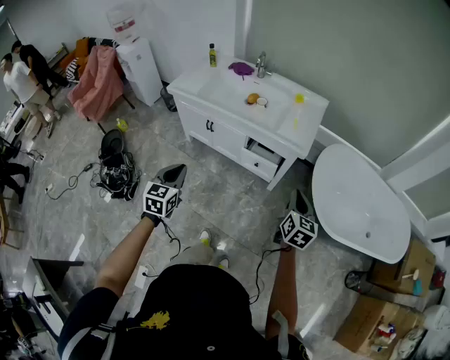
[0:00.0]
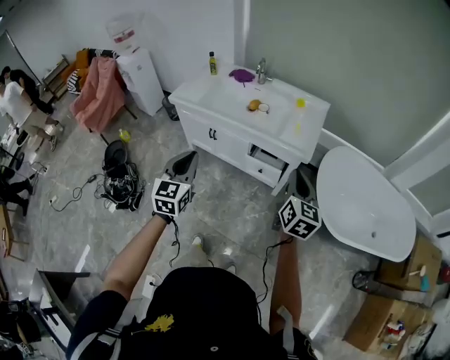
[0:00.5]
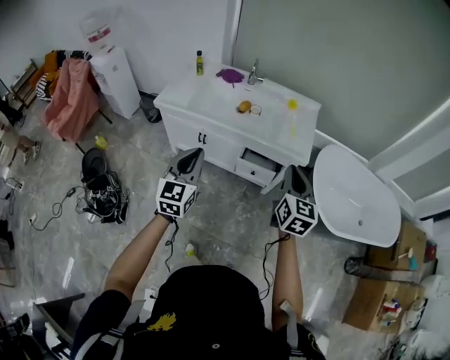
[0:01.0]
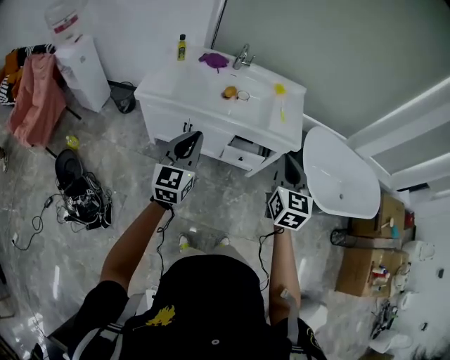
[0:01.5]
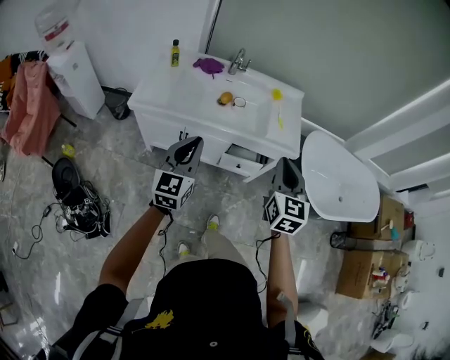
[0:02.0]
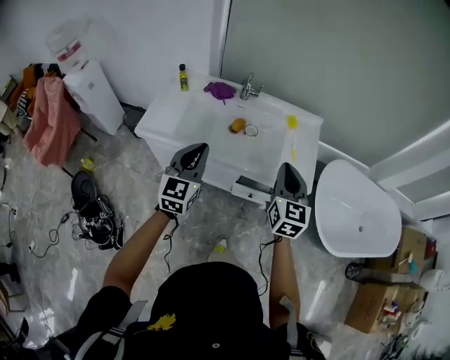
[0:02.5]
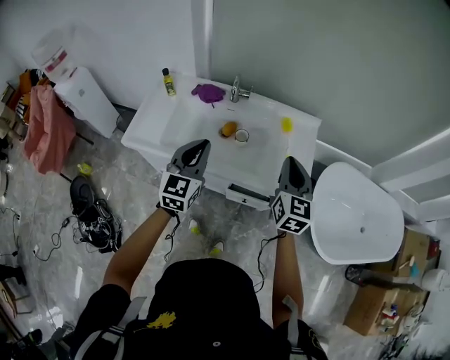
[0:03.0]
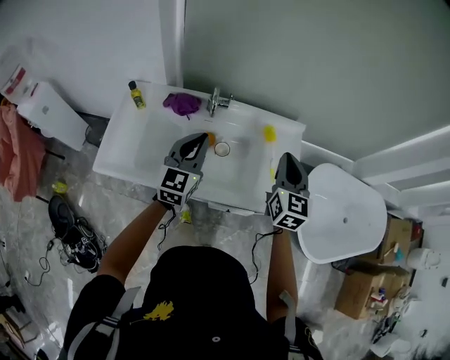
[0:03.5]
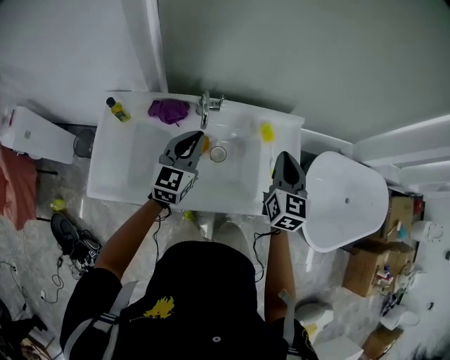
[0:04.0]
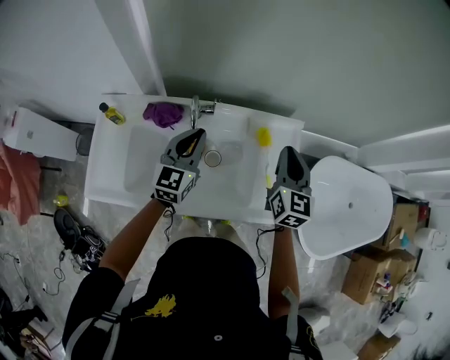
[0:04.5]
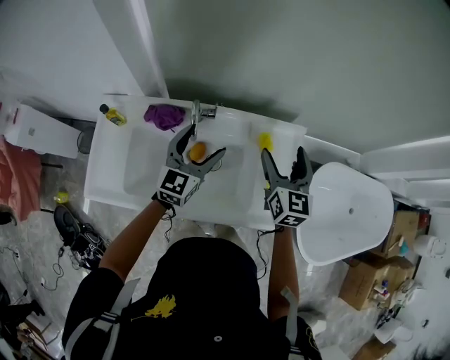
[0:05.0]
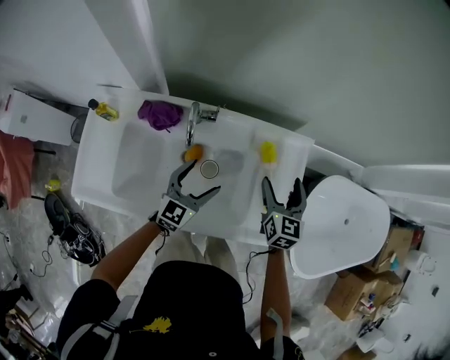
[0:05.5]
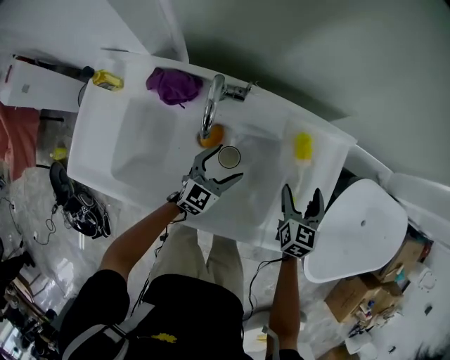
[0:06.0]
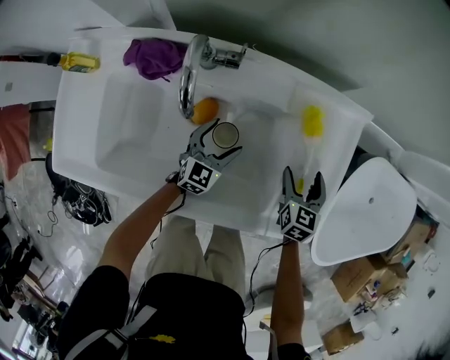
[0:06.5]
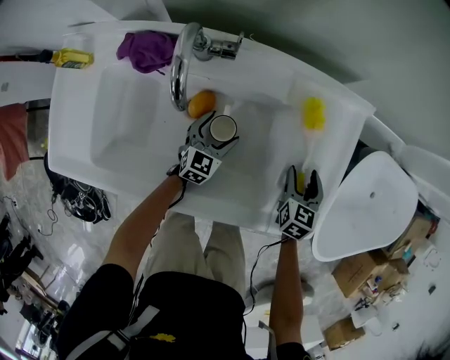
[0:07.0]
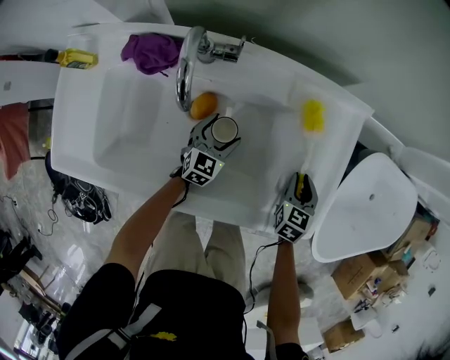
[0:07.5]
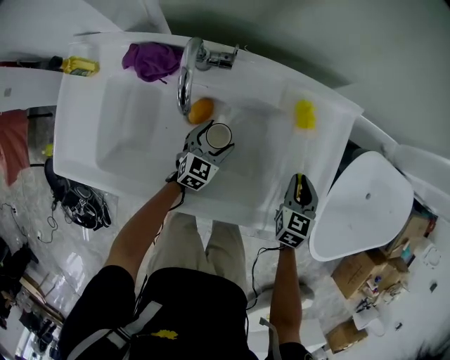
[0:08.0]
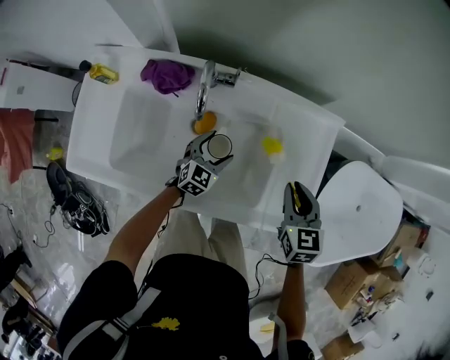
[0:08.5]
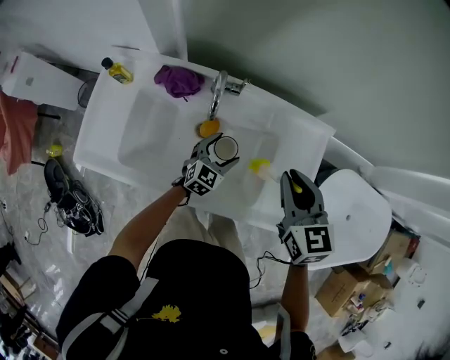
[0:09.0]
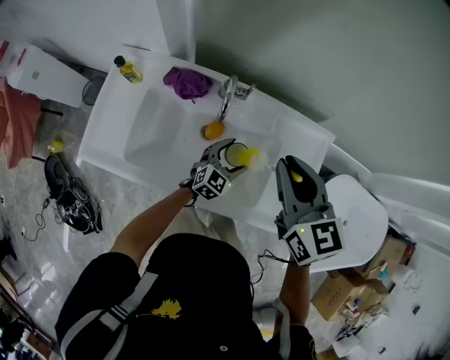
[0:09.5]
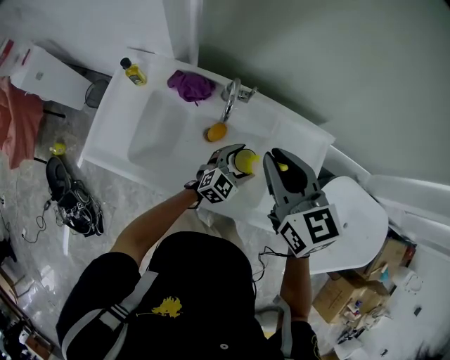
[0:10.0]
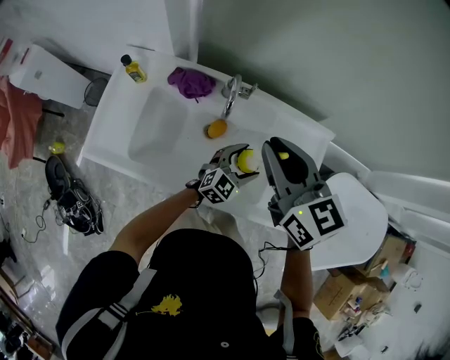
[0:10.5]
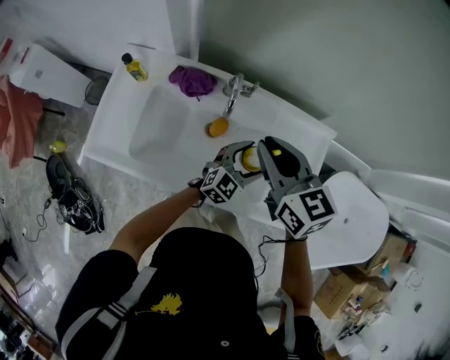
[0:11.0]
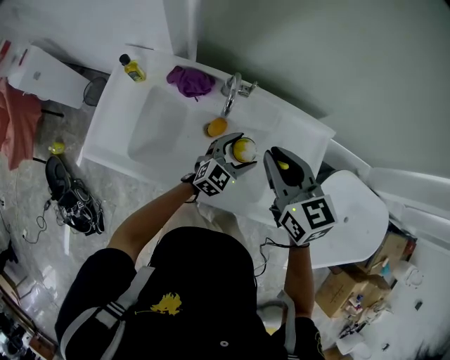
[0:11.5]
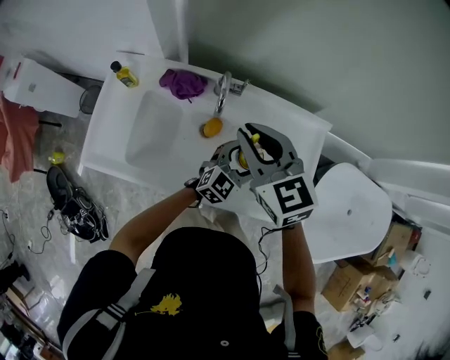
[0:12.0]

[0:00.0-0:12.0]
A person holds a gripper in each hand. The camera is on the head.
0:00.0 to 0:02.0: The right gripper goes roughly 30 cm to the left and forward, and turns by roughly 20 degrees. Meanwhile the left gripper moves forward and to the left, about 25 cm, and rotates about 30 degrees.
0:02.0 to 0:04.0: Both grippers are carried forward, approximately 50 cm.
0:04.0 to 0:06.0: The two grippers go some 30 cm downward. The right gripper opens up. Meanwhile the left gripper opens up.
0:06.0 to 0:08.0: The left gripper shifts approximately 10 cm downward. The right gripper moves downward, about 5 cm, and closes up.
0:08.0 to 0:10.0: The right gripper is displaced upward and to the left by roughly 40 cm, and rotates roughly 50 degrees, while the left gripper moves upward, roughly 20 cm.
0:10.0 to 0:12.0: The right gripper moves some 5 cm. The left gripper moves upward, some 5 cm.

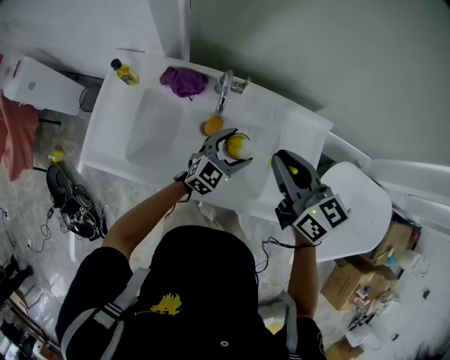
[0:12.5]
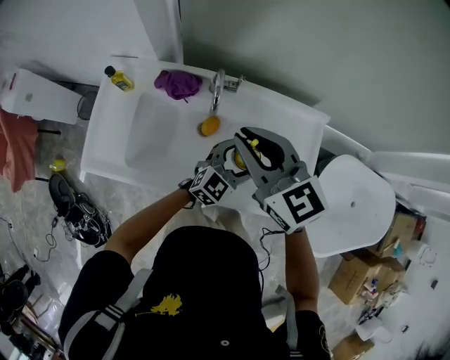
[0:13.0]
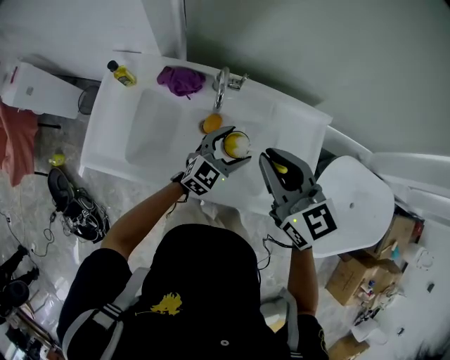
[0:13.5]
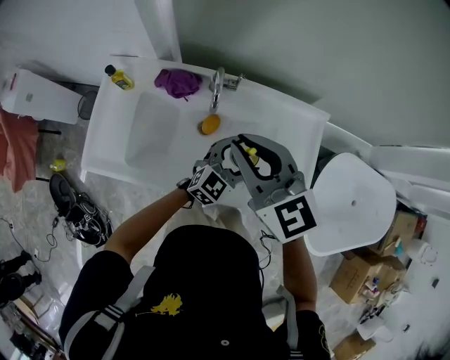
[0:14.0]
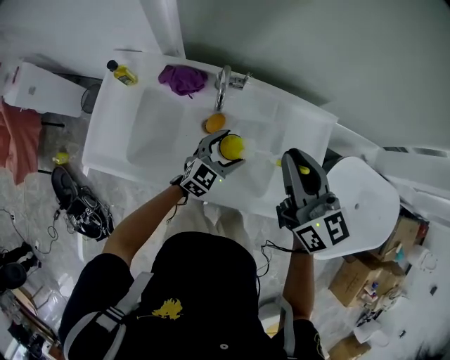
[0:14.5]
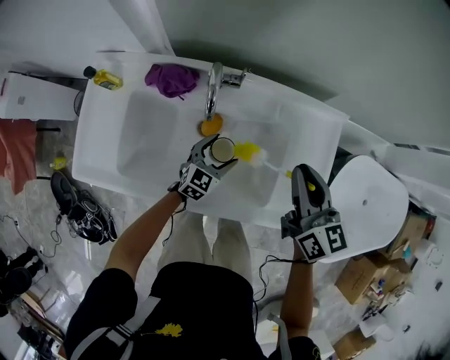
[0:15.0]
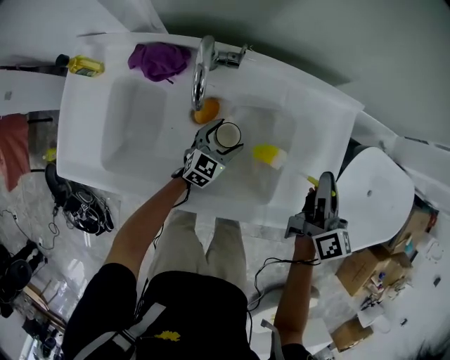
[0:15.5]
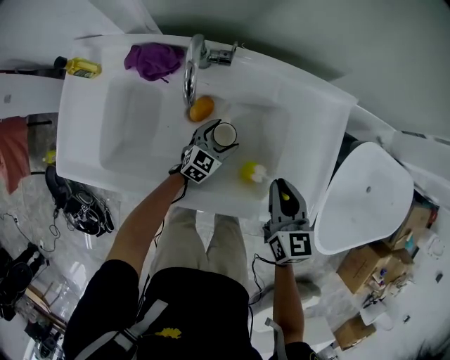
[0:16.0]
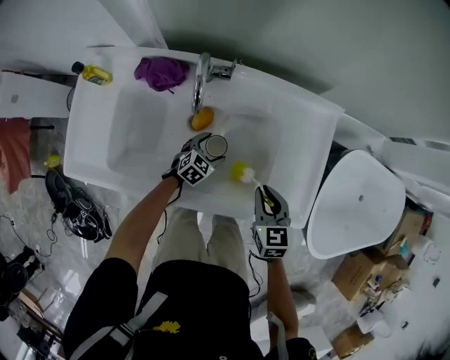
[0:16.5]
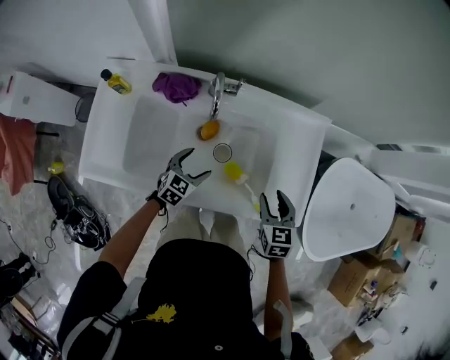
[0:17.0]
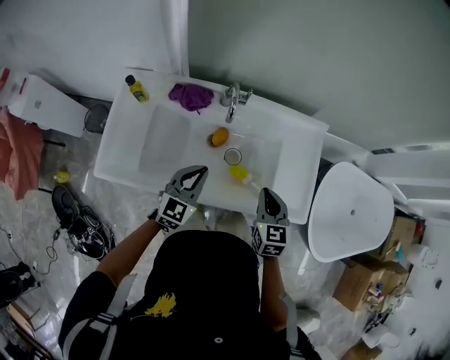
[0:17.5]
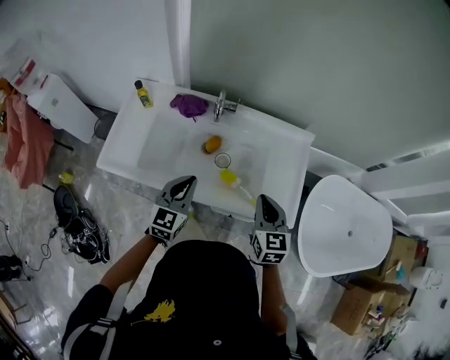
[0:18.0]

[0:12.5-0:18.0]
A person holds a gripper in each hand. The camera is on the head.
0:12.5 to 0:14.5: The right gripper goes left and right, roughly 10 cm each way, reversing 3 times.
0:14.5 to 0:16.0: The two grippers go some 25 cm downward. The right gripper swivels some 30 degrees.
0:16.0 to 0:18.0: The right gripper travels upward and backward by about 20 cm, and opens, then closes once more. The left gripper is displaced upward and backward by approximately 40 cm, turns by about 30 degrees, and closes its fingers.

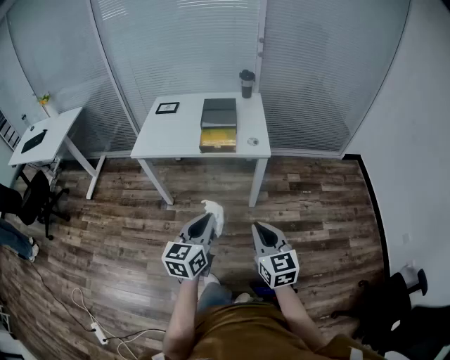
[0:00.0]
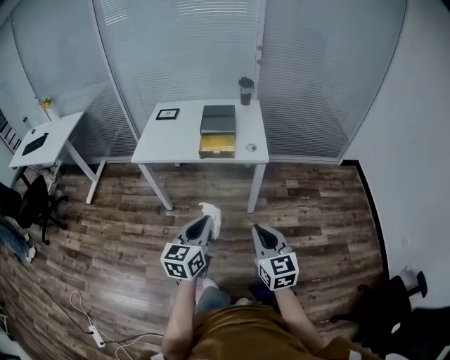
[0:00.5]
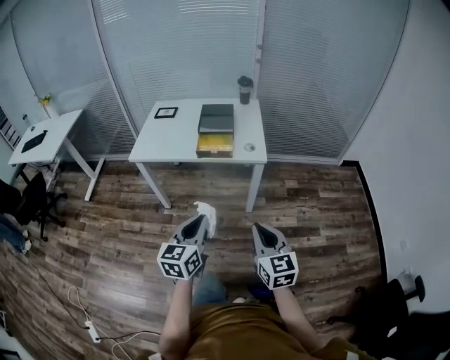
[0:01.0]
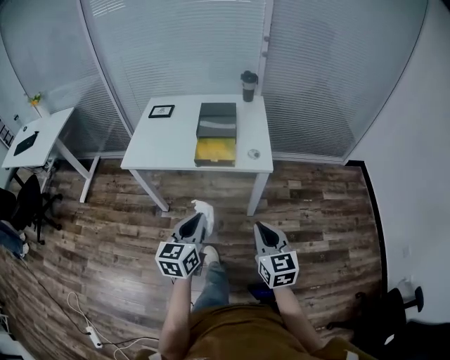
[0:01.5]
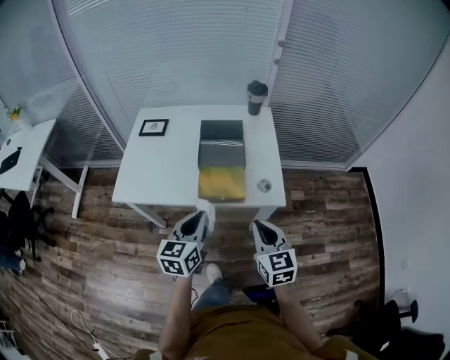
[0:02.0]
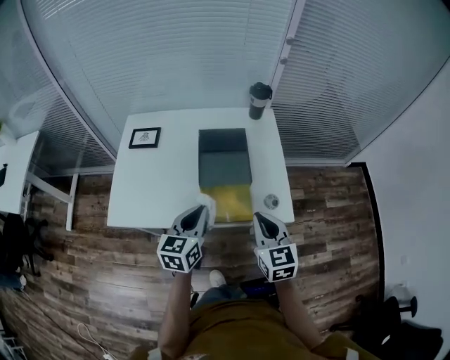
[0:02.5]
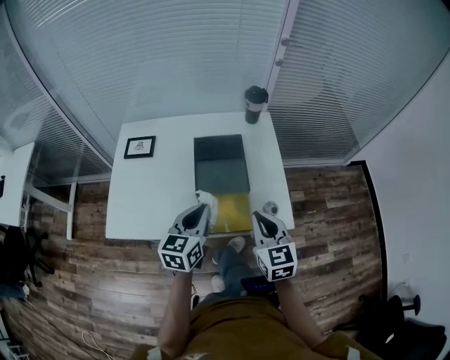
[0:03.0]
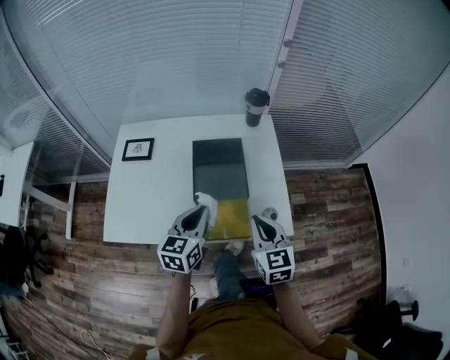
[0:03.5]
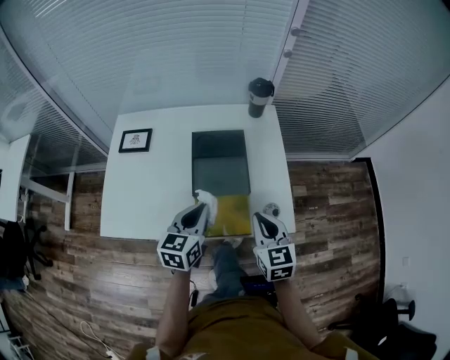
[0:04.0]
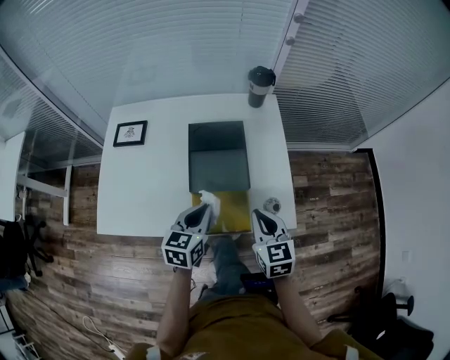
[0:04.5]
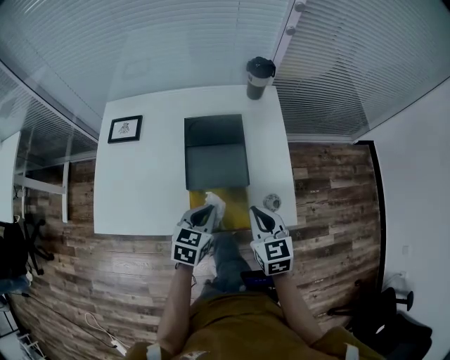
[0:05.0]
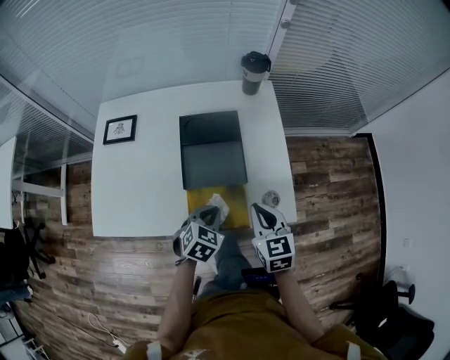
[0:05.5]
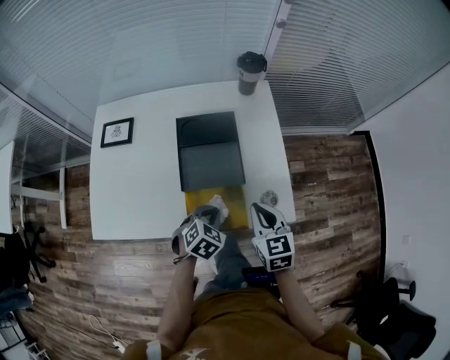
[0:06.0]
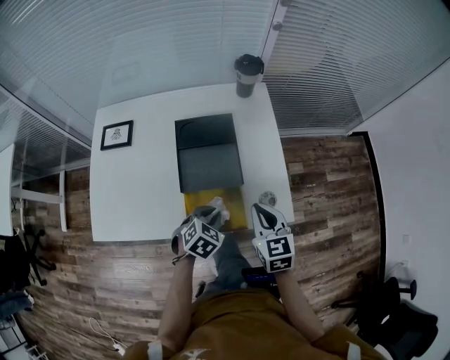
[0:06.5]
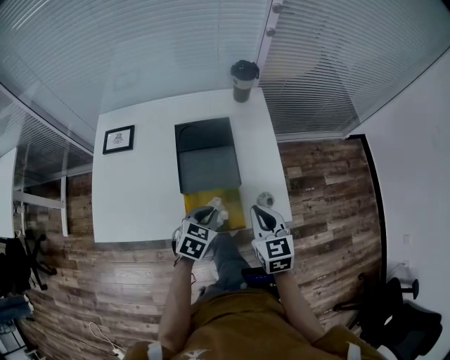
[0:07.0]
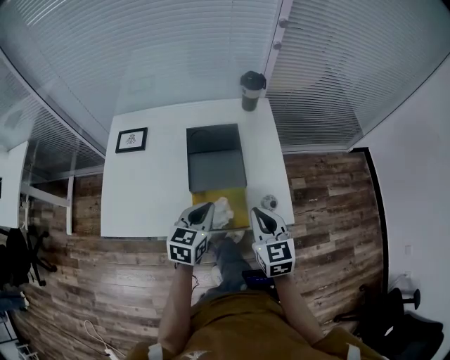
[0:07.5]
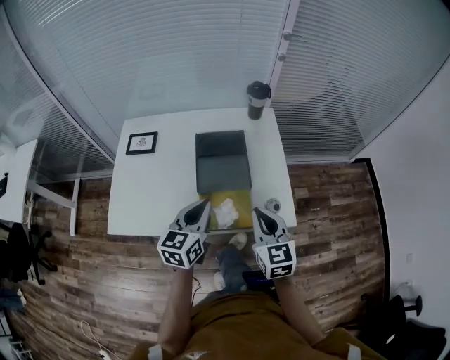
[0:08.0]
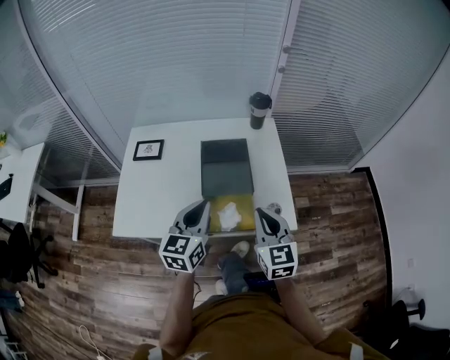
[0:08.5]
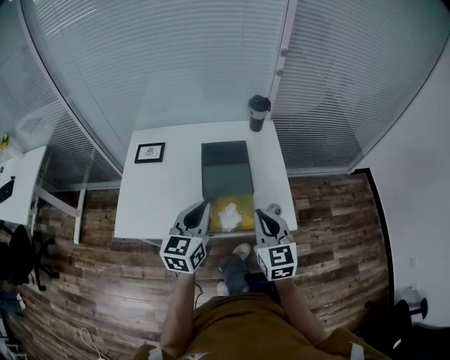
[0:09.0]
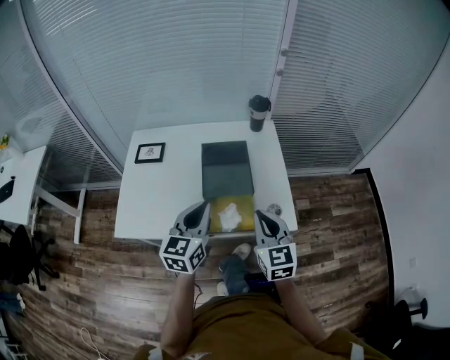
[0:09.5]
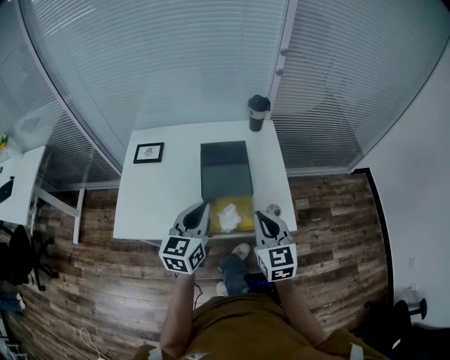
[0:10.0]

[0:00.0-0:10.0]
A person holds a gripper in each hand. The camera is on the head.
0:00.0 to 0:02.0: Both grippers travel together forward, approximately 30 cm.
0:02.0 to 0:04.0: The grippers both shift forward by about 20 cm.
0:04.0 to 0:06.0: The left gripper goes roughly 15 cm downward and to the right, and tilts its fingers about 30 degrees downward. Meanwhile the right gripper is displaced downward by some 5 cm.
0:06.0 to 0:08.0: The right gripper is displaced upward by some 10 cm. Meanwhile the left gripper goes some 15 cm upward, and tips its fingers upward by approximately 40 degrees.
0:08.0 to 0:10.0: The left gripper moves roughly 5 cm.
